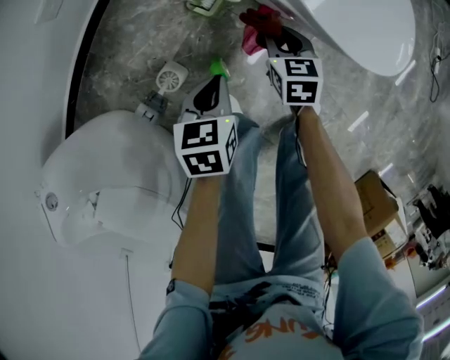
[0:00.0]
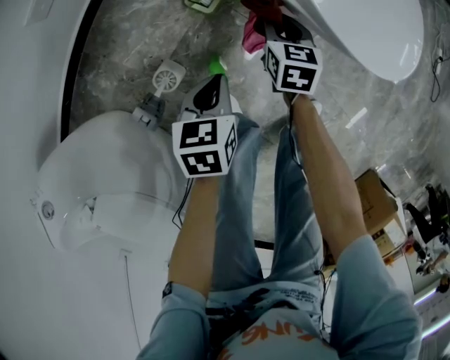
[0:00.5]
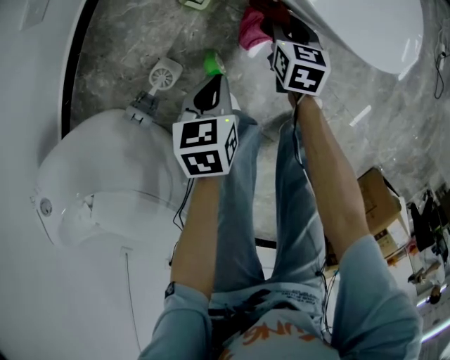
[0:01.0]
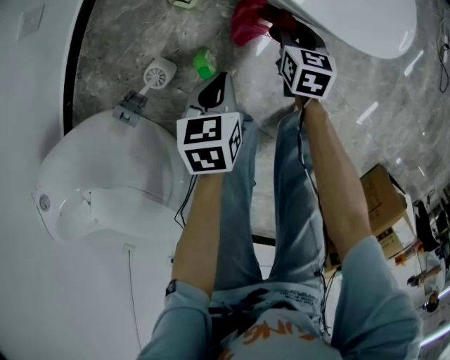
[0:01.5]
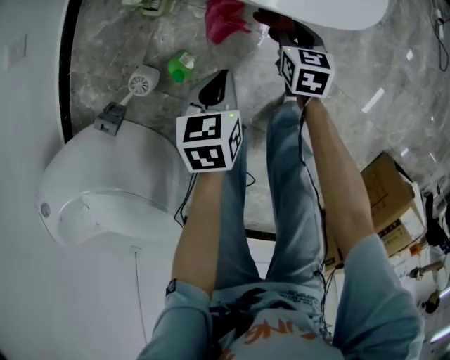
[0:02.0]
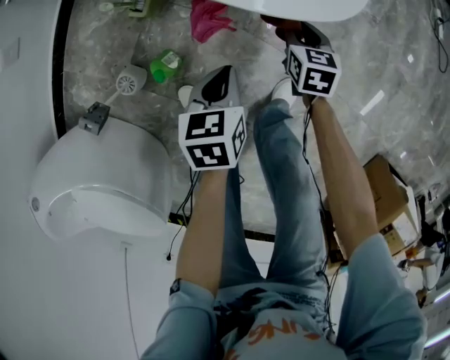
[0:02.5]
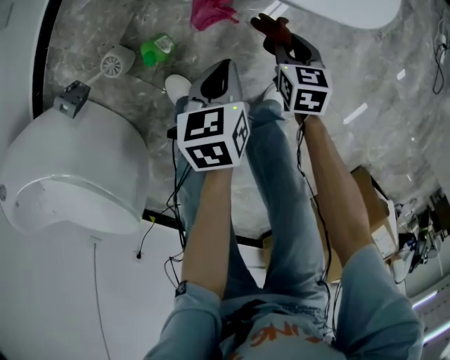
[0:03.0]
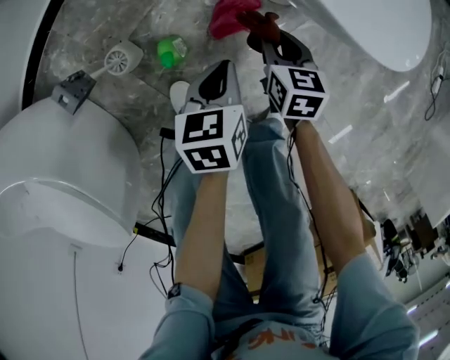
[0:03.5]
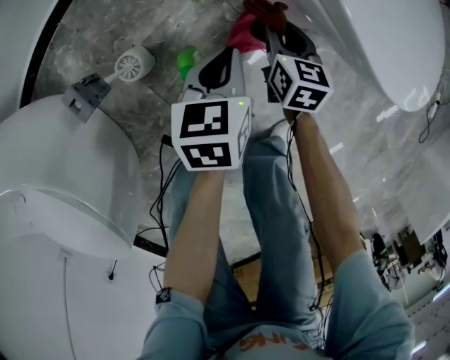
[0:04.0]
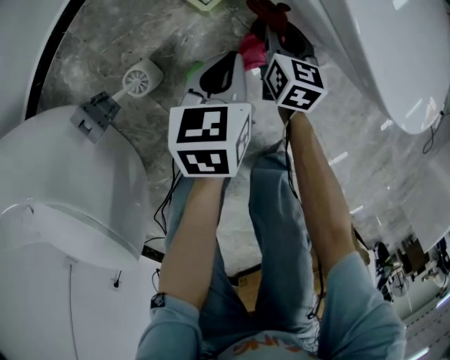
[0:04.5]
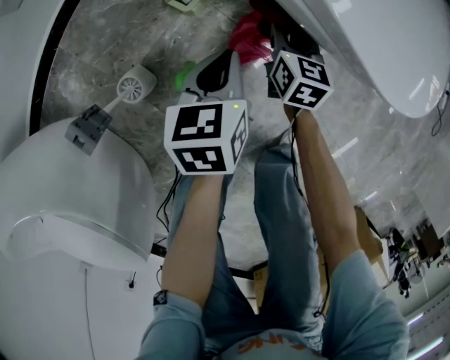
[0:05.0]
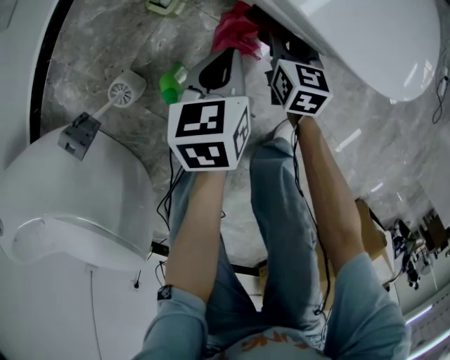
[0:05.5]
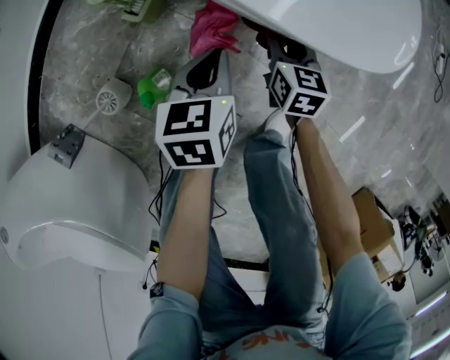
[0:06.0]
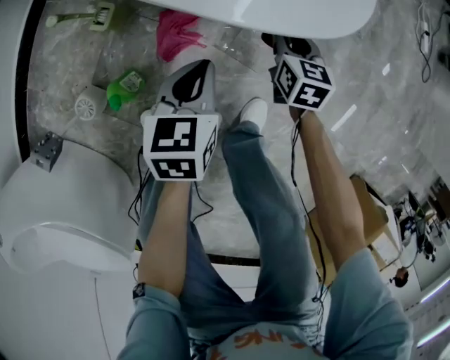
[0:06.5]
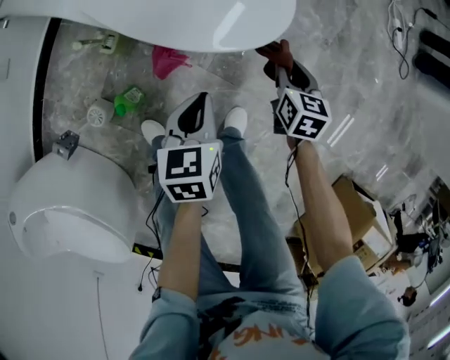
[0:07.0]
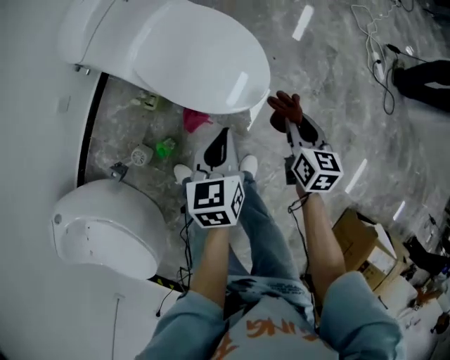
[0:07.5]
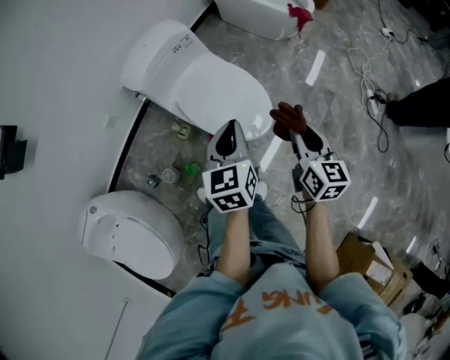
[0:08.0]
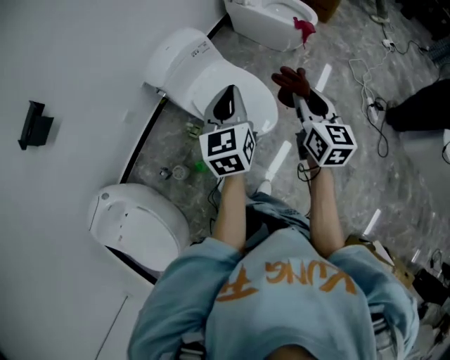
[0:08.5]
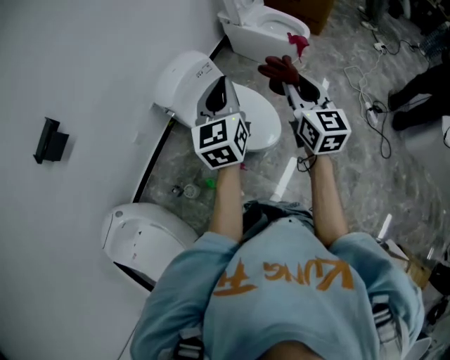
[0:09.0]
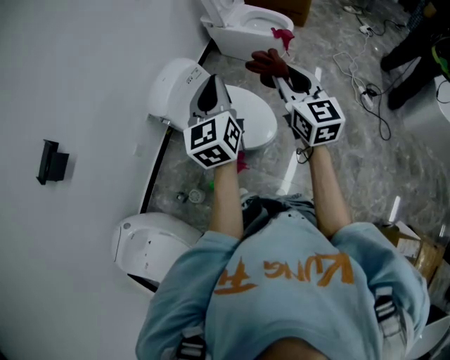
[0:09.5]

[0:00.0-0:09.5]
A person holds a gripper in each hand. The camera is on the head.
0:00.0 to 0:02.0: The two grippers go roughly 20 cm to the right.
0:02.0 to 0:04.0: The left gripper is displaced to the left and downward by approximately 10 cm, and changes its angle by roughly 30 degrees; the right gripper moves to the left, some 15 cm, and rotates roughly 20 degrees.
0:04.0 to 0:05.5: Both grippers travel together to the right, some 5 cm.
0:05.5 to 0:07.5: The grippers both shift upward and to the right by some 40 cm.
0:07.5 to 0:09.5: The two grippers go roughly 50 cm upward. The right gripper tips its fingers upward by approximately 30 degrees; the left gripper tips its fingers upward by about 30 degrees.

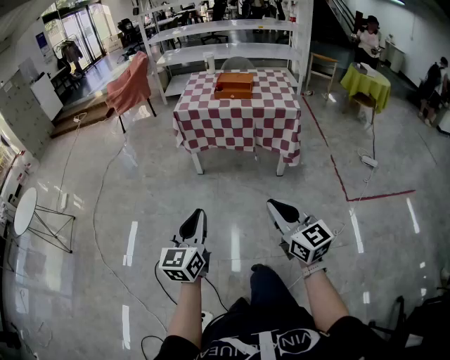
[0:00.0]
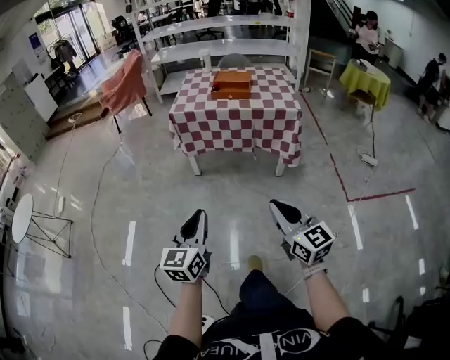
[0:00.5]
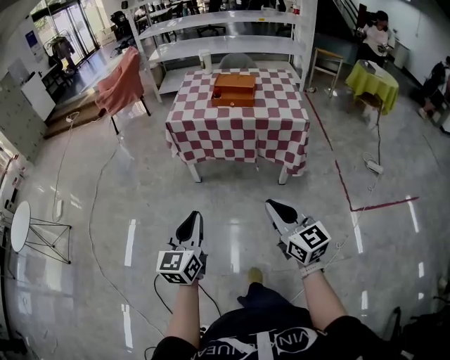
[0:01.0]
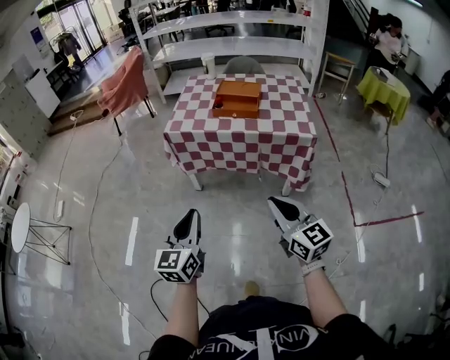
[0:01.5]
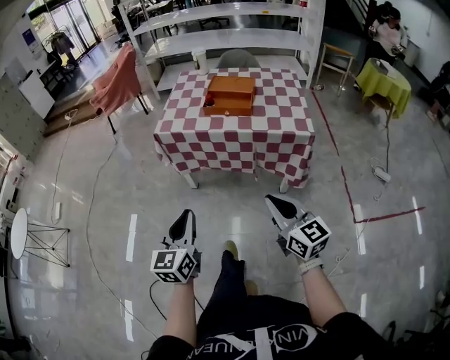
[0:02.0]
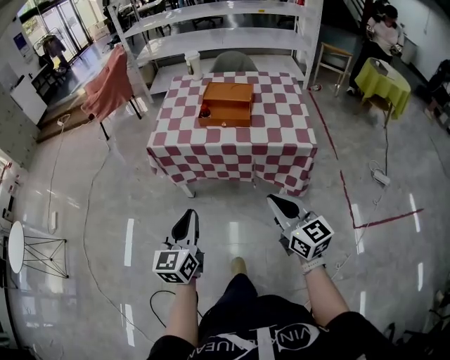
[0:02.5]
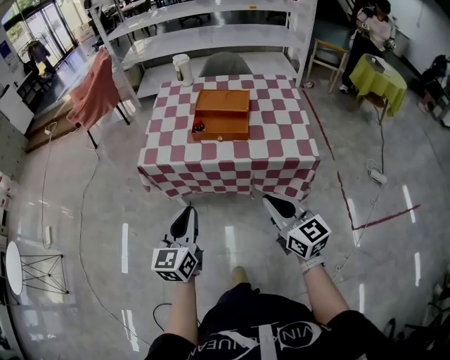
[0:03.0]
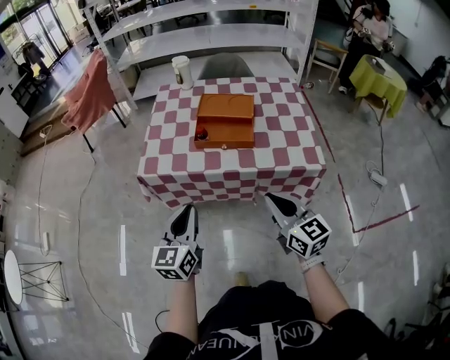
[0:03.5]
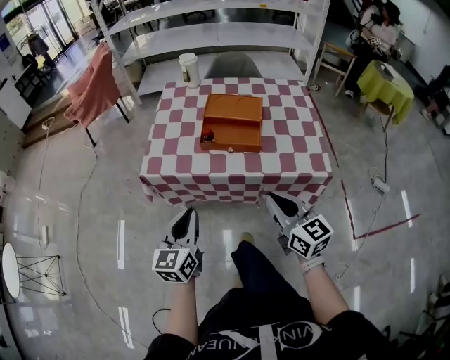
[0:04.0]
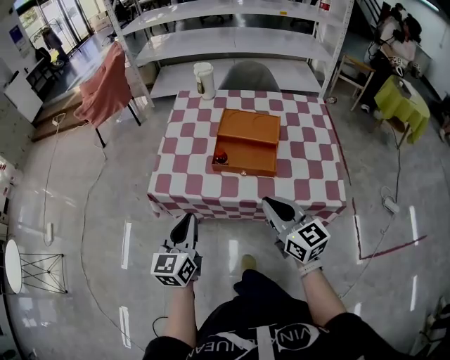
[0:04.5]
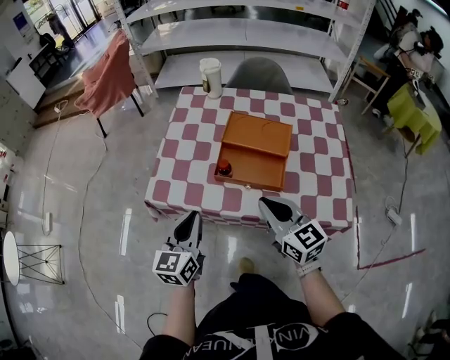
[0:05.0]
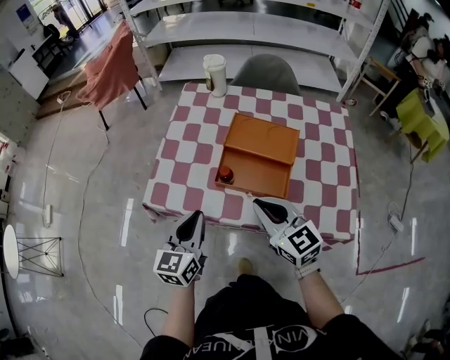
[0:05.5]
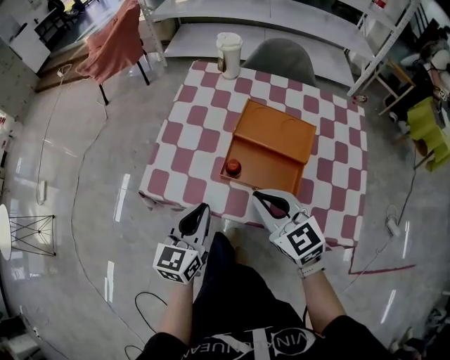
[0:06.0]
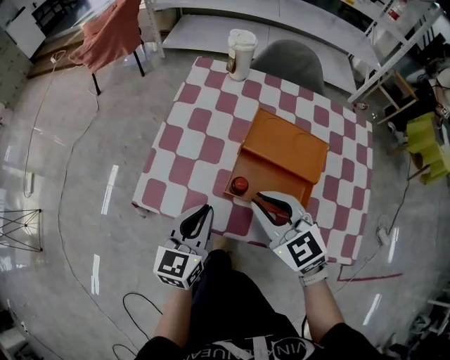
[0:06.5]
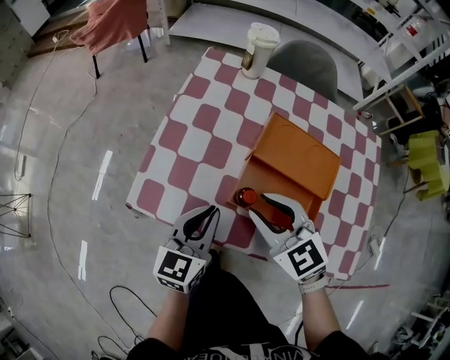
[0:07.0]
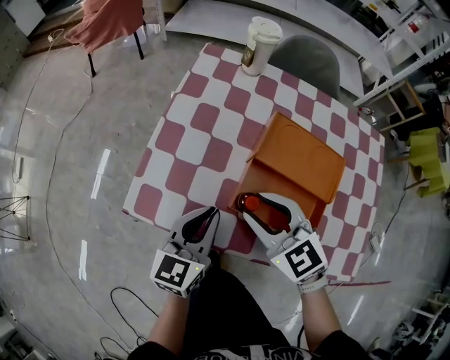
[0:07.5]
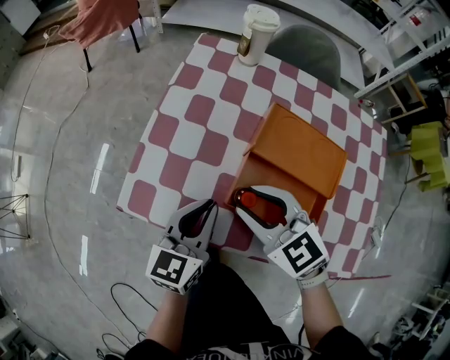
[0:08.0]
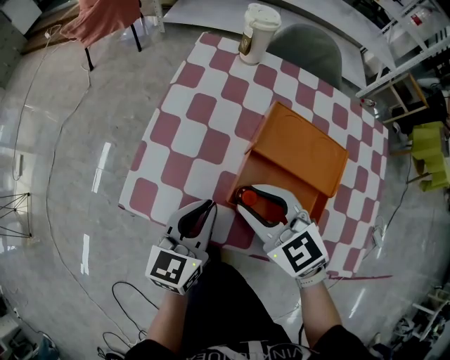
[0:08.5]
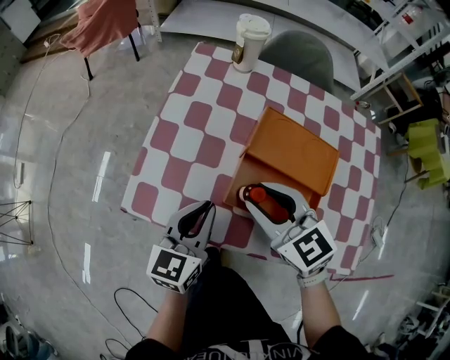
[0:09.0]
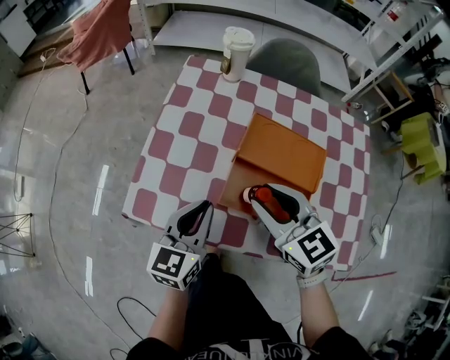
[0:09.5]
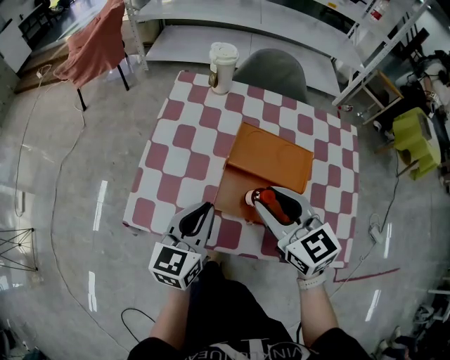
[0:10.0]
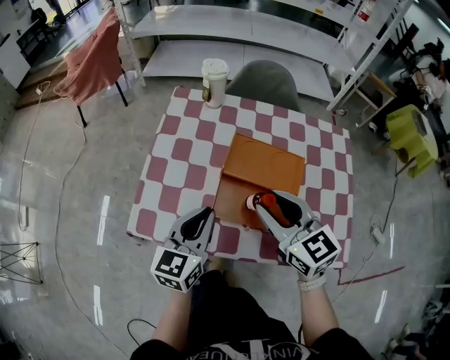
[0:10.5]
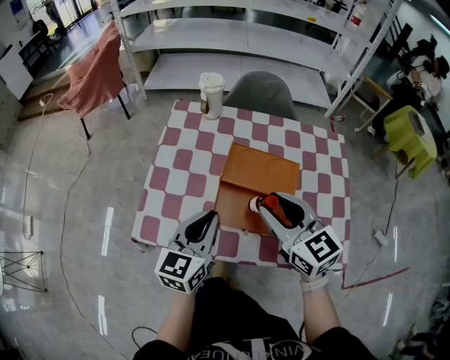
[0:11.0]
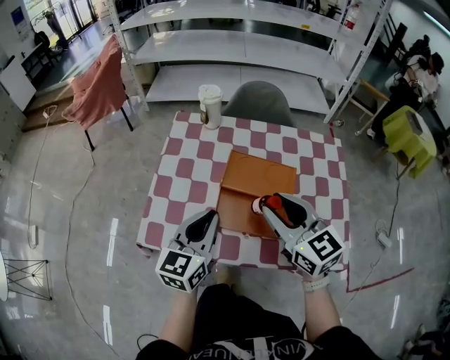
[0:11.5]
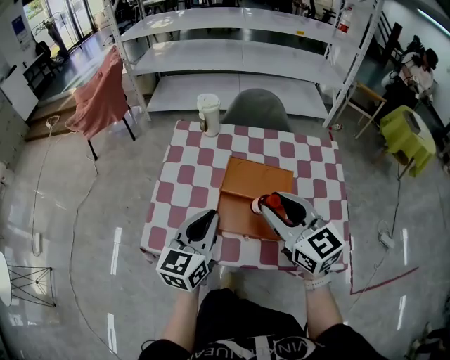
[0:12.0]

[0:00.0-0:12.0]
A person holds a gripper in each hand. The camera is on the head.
0:00.0 to 0:02.0: Both grippers move forward, about 30 cm.
0:02.0 to 0:04.0: Both grippers travel together forward, some 25 cm.
0:04.0 to 0:06.0: The two grippers go some 20 cm forward. The right gripper turns by some 30 degrees.
0:06.0 to 0:08.0: The left gripper goes some 10 cm forward; the right gripper shifts some 10 cm forward and downward, and opens up.
0:08.0 to 0:10.0: The left gripper goes approximately 5 cm upward; the right gripper moves upward and to the right, roughly 10 cm, and rotates some 20 degrees.
0:10.0 to 0:12.0: The grippers both shift upward by roughly 10 cm.

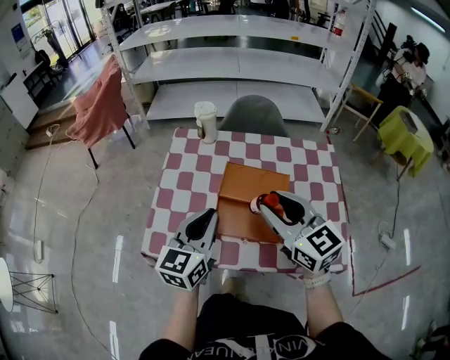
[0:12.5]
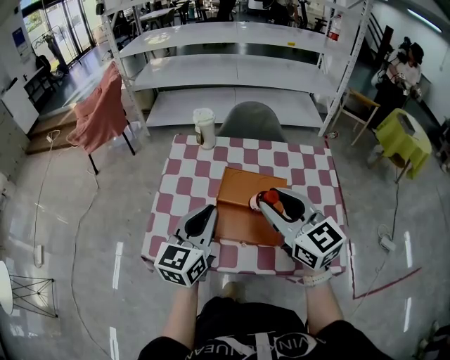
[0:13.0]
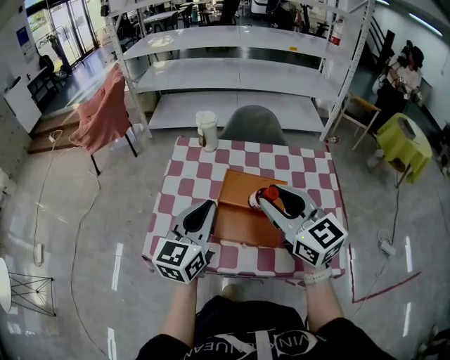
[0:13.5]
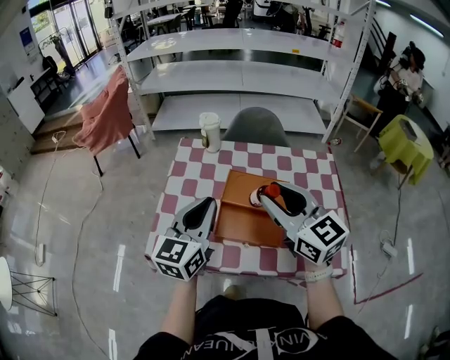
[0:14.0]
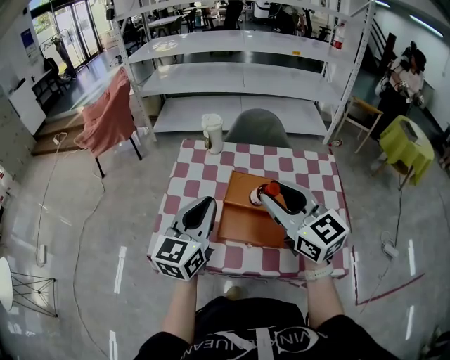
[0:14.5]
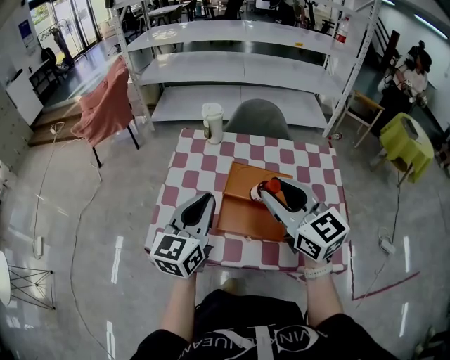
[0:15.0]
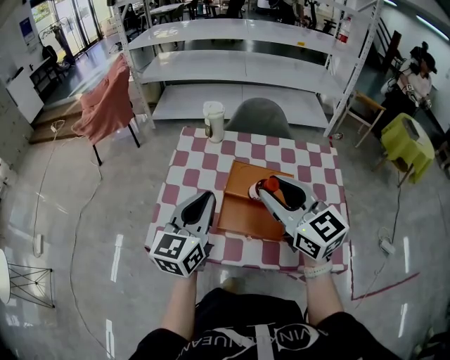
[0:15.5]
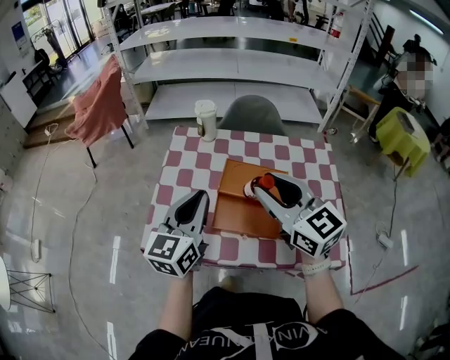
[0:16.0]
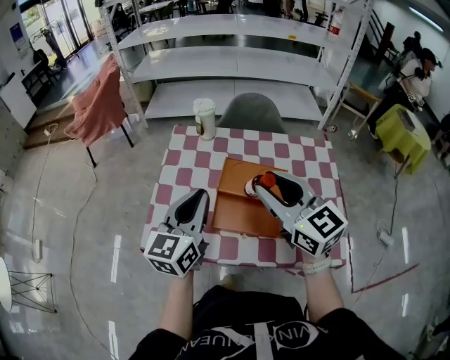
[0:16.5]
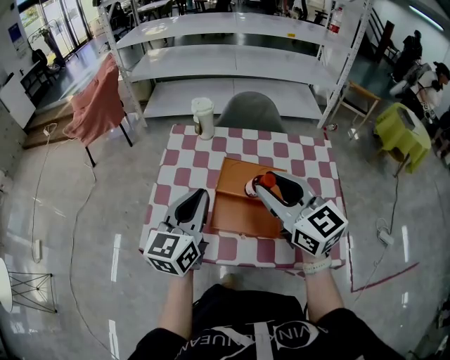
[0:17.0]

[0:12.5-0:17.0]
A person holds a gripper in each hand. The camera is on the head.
0:12.5 to 0:14.5: Both grippers travel together upward, roughly 5 cm.
0:14.5 to 0:17.0: There are only small adjustments of the grippers.

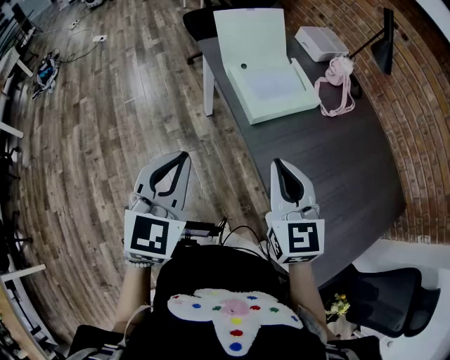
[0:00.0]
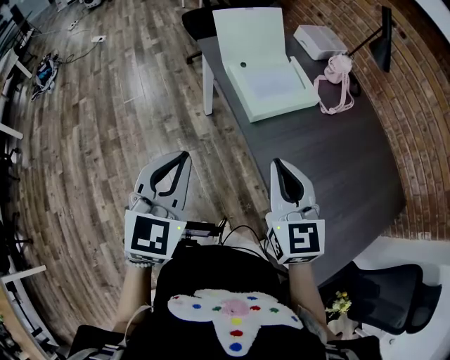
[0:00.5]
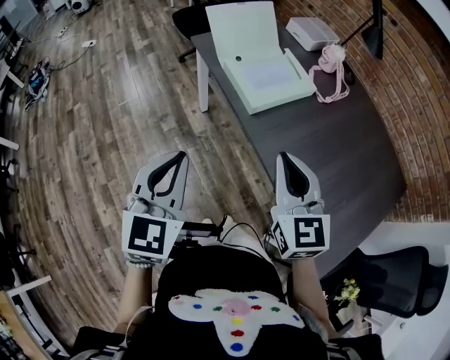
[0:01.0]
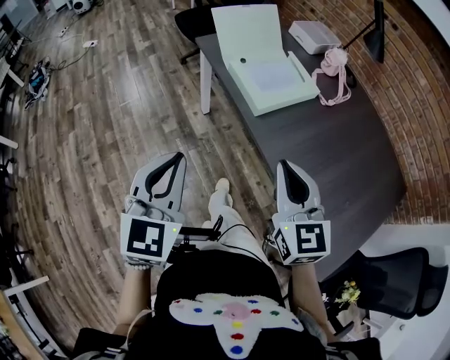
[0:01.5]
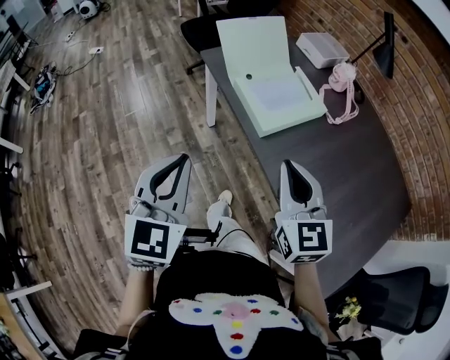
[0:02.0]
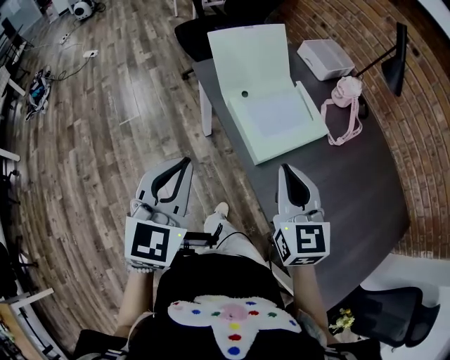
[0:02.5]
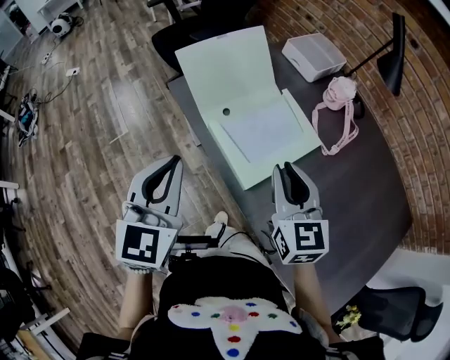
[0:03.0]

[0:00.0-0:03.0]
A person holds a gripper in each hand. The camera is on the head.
0:00.0 to 0:01.5: The right gripper shifts by roughly 5 cm; the left gripper ends up approximately 5 cm from where it was.
0:01.5 to 0:03.0: Both grippers travel together forward, roughly 30 cm.
